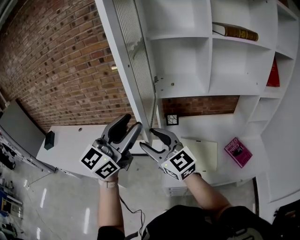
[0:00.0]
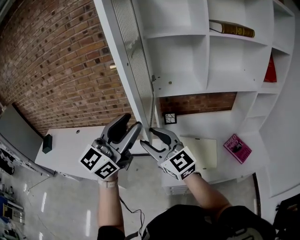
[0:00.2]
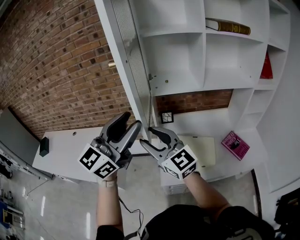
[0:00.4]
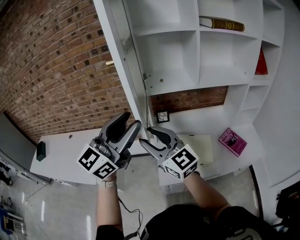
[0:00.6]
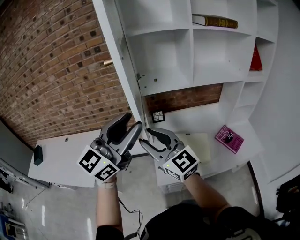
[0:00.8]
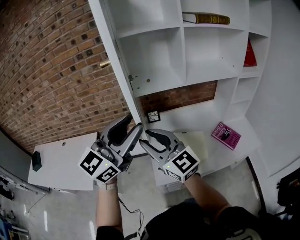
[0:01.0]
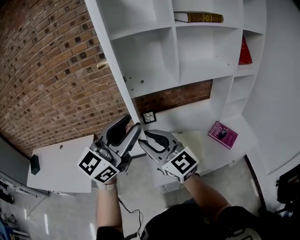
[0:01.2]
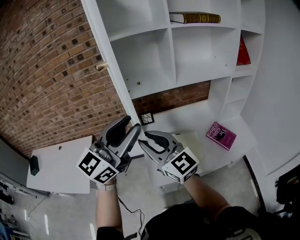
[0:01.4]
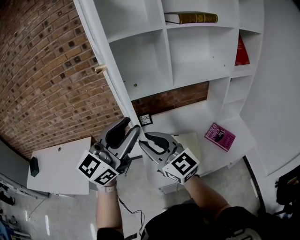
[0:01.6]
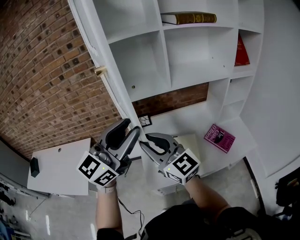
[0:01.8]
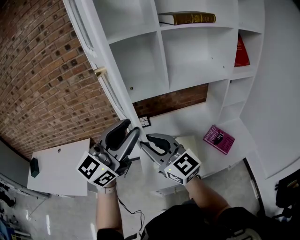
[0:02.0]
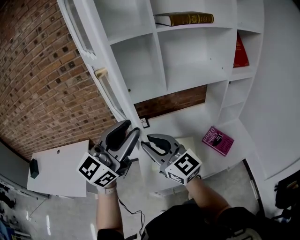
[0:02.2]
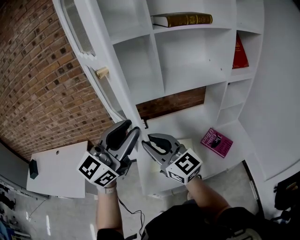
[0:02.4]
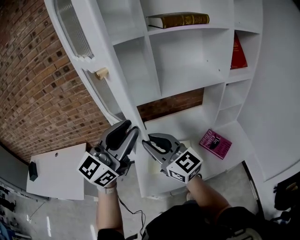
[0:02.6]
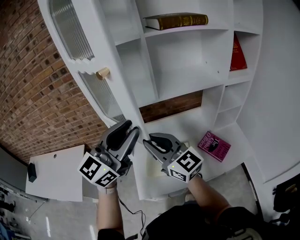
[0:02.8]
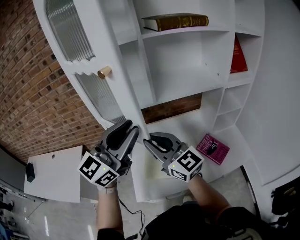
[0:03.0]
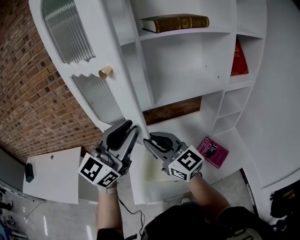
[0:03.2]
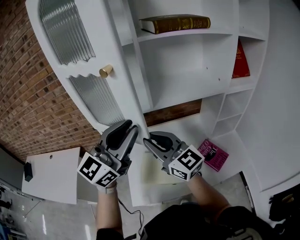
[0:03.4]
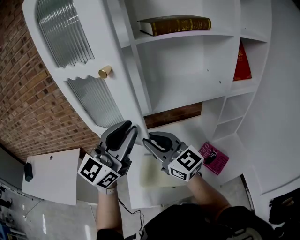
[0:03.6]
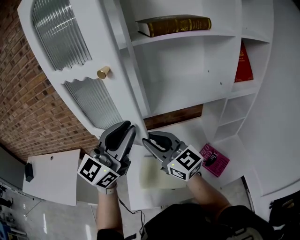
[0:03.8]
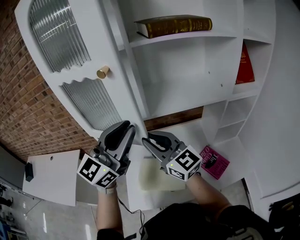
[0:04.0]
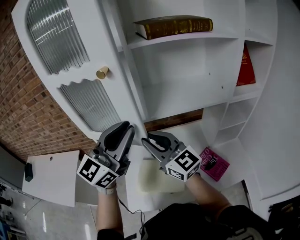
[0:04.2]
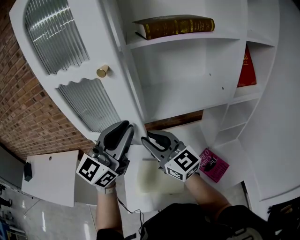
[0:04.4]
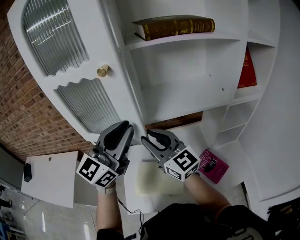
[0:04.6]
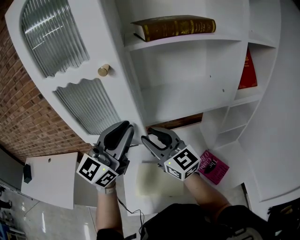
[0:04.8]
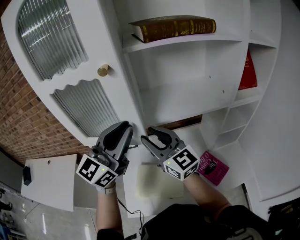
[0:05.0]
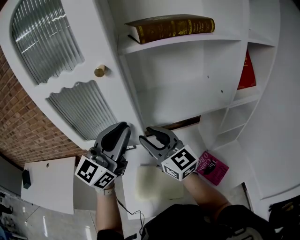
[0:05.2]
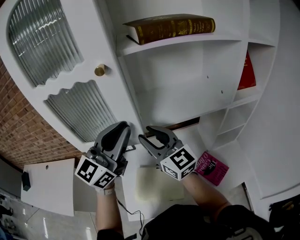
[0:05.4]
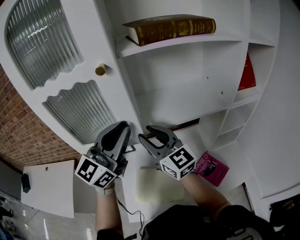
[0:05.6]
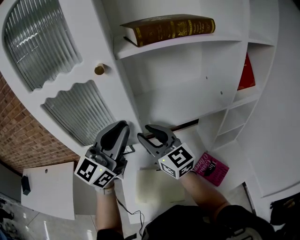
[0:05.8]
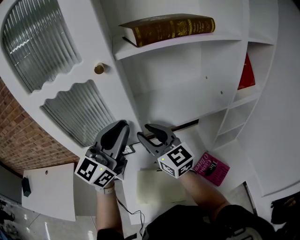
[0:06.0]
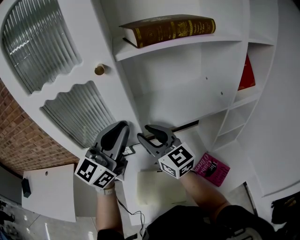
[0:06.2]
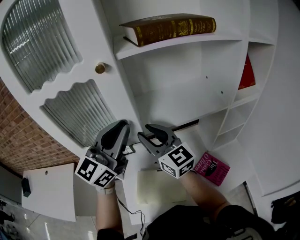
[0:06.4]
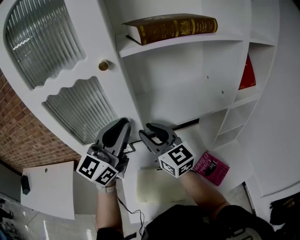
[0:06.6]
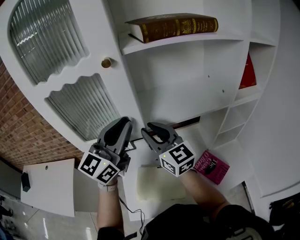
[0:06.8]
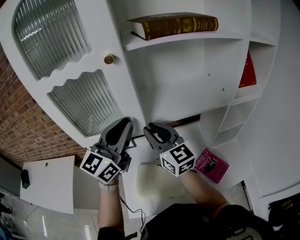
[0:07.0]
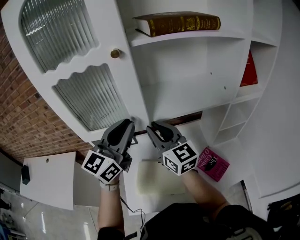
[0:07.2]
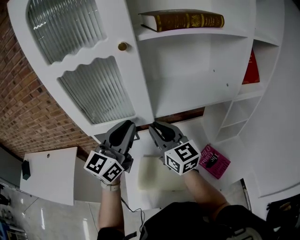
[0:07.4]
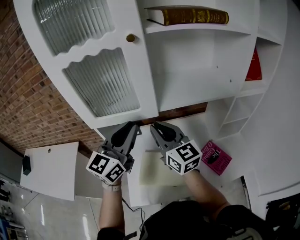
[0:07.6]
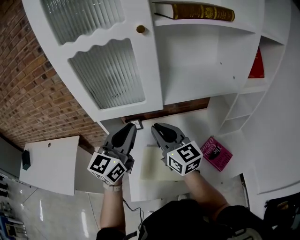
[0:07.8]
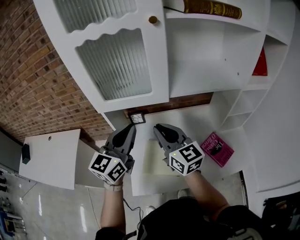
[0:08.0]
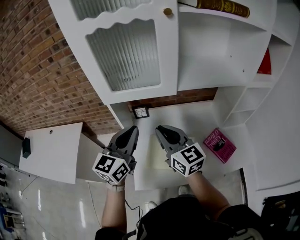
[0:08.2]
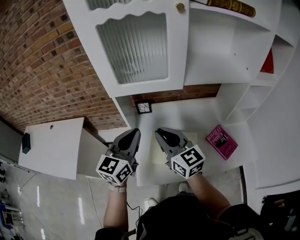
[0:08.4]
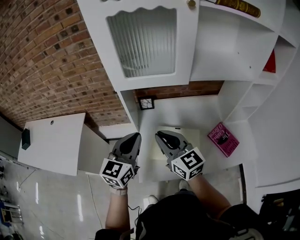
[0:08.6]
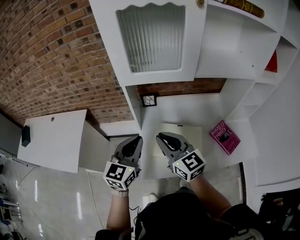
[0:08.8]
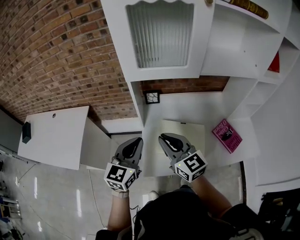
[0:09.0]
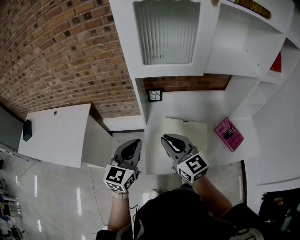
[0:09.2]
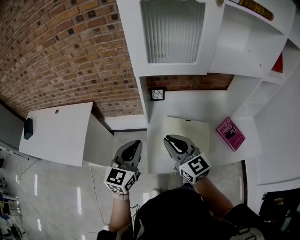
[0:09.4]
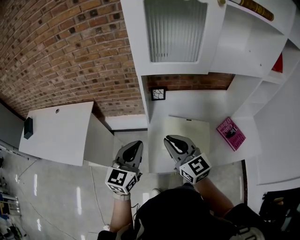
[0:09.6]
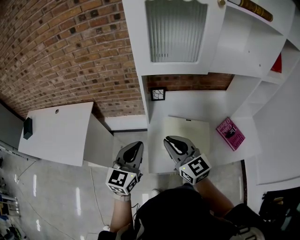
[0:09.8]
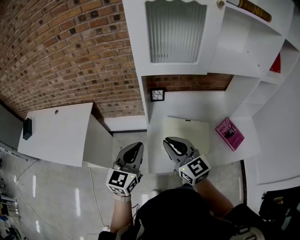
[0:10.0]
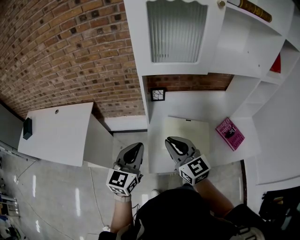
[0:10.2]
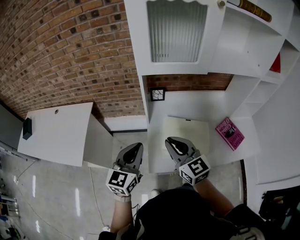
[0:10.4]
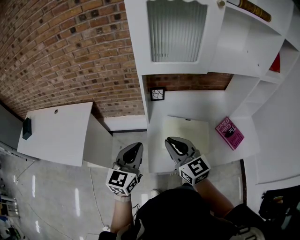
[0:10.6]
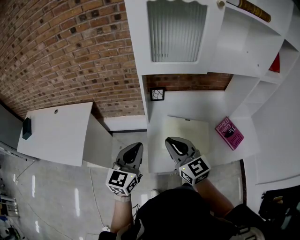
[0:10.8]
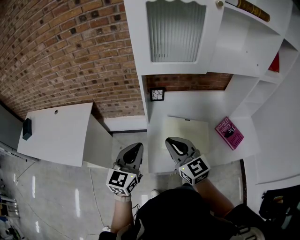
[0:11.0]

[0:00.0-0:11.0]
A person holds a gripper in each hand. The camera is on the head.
0:00.0 to 0:01.6: Both grippers travel together to the right, roughly 10 cm. The right gripper closes its fingers.
0:01.6 to 0:03.2: Both grippers move to the right and forward, some 15 cm.
0:03.2 to 0:04.8: Both grippers travel together forward, approximately 10 cm.
0:04.8 to 0:06.2: The grippers both shift forward by roughly 5 cm.
0:06.2 to 0:07.8: The left gripper shifts roughly 15 cm downward, backward and to the left. The right gripper moves backward and downward, approximately 10 cm, and closes up.
0:07.8 to 0:09.4: The right gripper shifts roughly 25 cm to the left, backward and downward; the left gripper shifts roughly 30 cm to the left, downward and backward.
0:09.4 to 0:11.0: The grippers make only small movements.

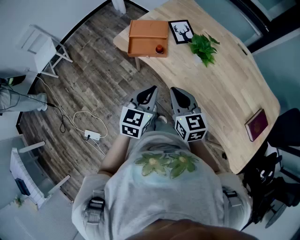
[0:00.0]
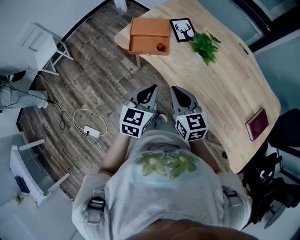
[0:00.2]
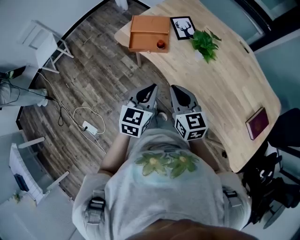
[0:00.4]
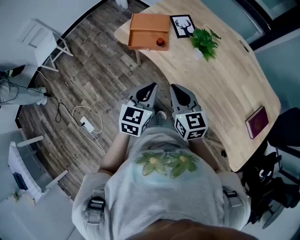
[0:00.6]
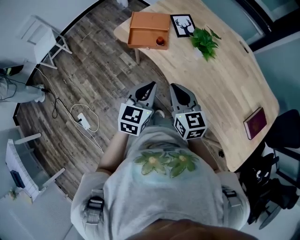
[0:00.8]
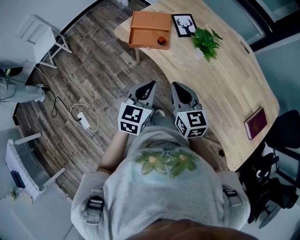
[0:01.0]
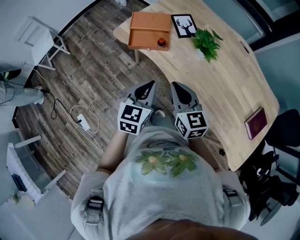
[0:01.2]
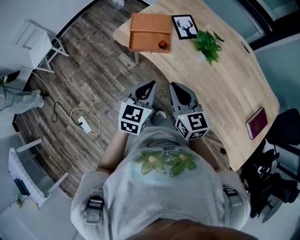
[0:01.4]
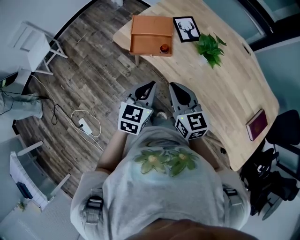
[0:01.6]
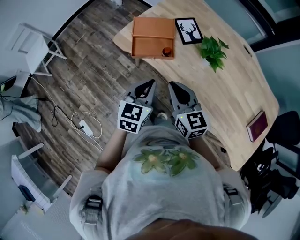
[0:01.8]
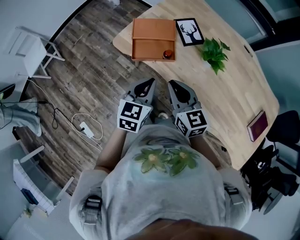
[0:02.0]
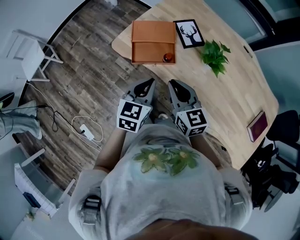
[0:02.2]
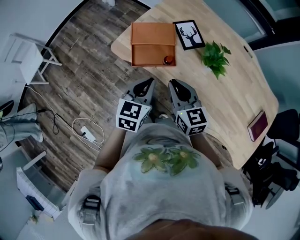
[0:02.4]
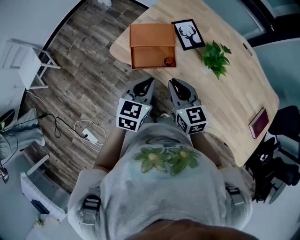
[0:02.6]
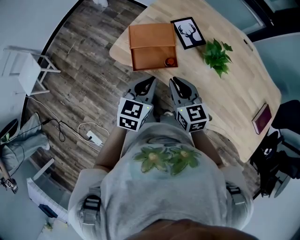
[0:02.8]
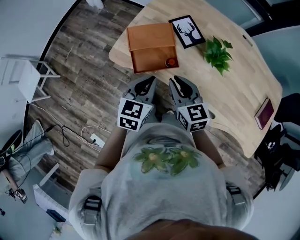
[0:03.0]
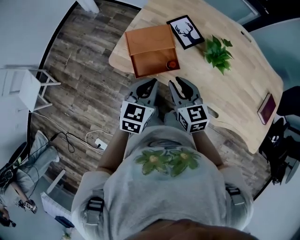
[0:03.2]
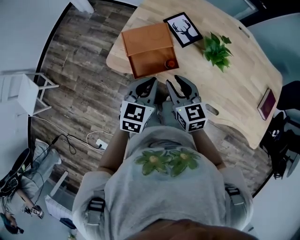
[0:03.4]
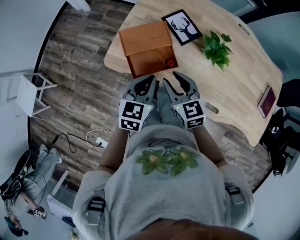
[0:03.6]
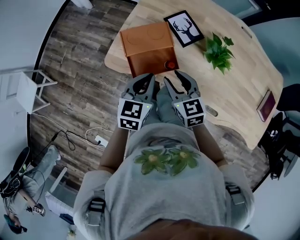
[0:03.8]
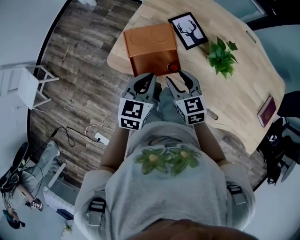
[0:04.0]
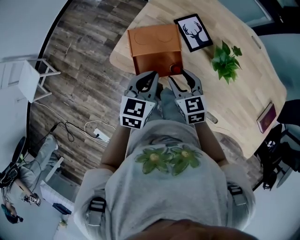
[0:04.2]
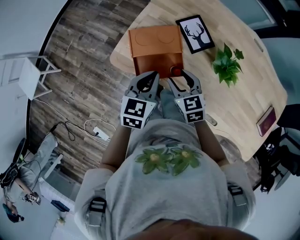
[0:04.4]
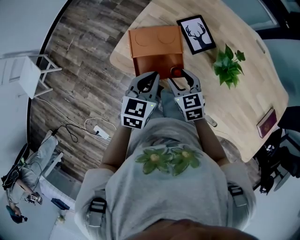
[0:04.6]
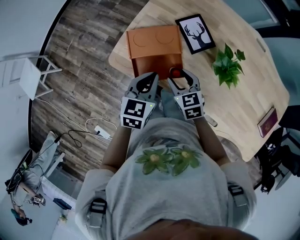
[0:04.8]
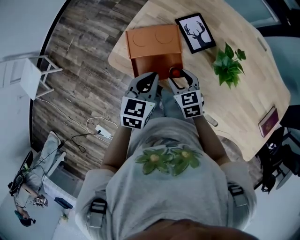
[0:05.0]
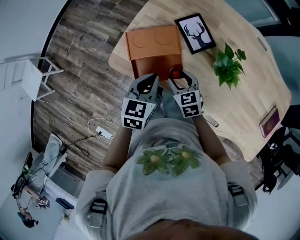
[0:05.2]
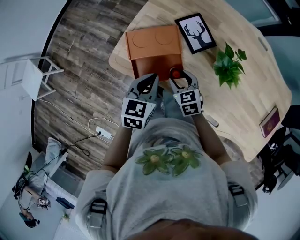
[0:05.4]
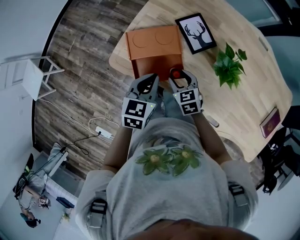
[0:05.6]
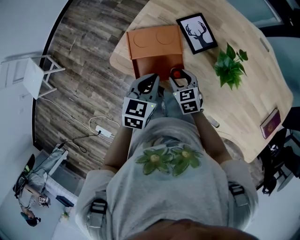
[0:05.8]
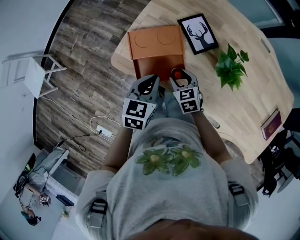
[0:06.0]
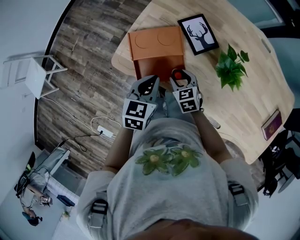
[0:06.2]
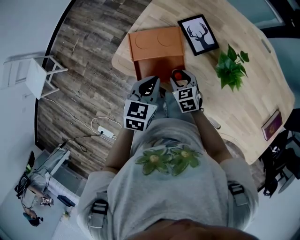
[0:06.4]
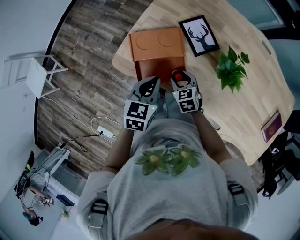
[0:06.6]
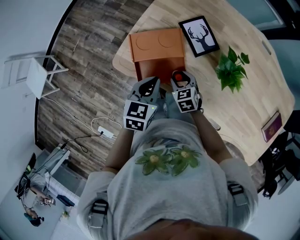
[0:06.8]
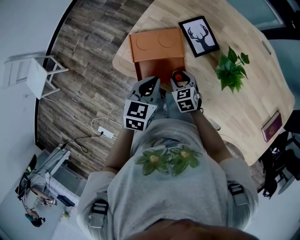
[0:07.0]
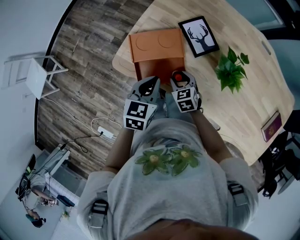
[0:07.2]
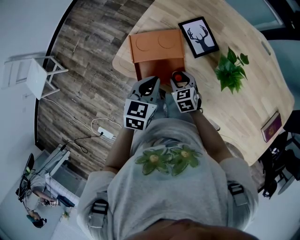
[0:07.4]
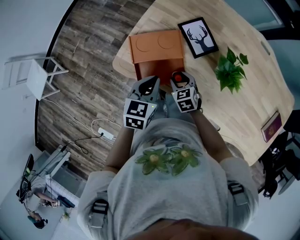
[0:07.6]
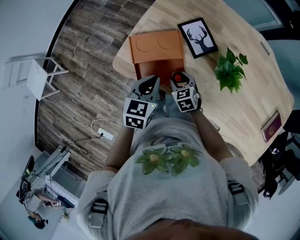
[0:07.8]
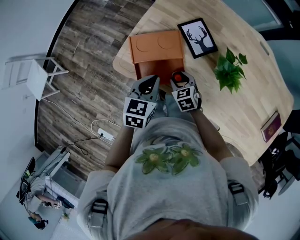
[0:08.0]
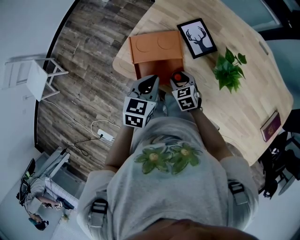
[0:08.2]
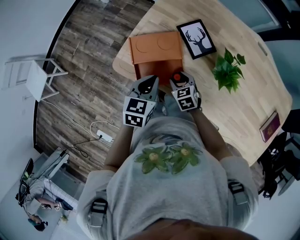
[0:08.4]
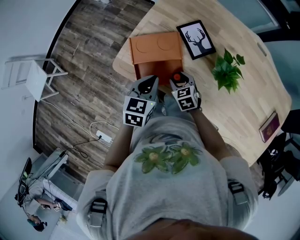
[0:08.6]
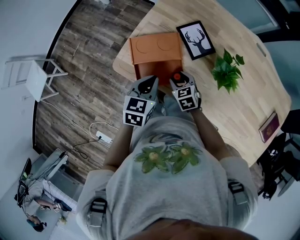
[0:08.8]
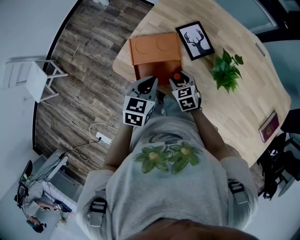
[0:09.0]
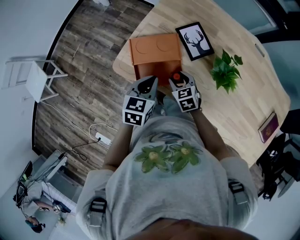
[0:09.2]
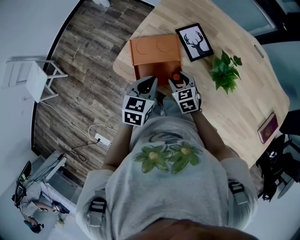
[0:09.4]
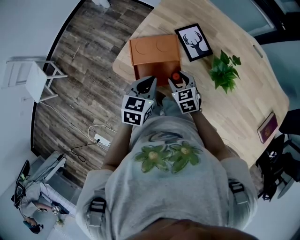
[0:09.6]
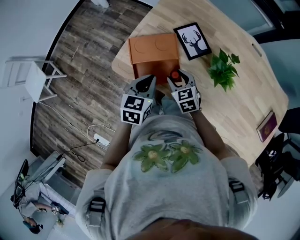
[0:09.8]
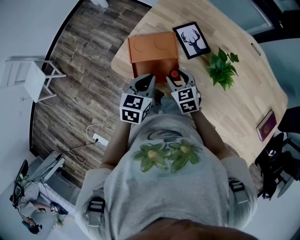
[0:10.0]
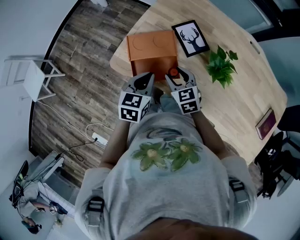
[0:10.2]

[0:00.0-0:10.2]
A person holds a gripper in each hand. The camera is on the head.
0:00.0 to 0:01.4: The grippers make only small movements.
0:01.4 to 0:03.0: Both grippers travel together forward and to the left, some 20 cm.
0:03.0 to 0:04.4: The right gripper heads forward and downward, covering about 10 cm, and opens, while the left gripper goes some 10 cm forward.
0:04.4 to 0:05.8: The right gripper moves downward, approximately 10 cm.
0:05.8 to 0:08.8: There are only small adjustments of the grippers.
0:08.8 to 0:10.2: The right gripper is displaced upward by roughly 10 cm.

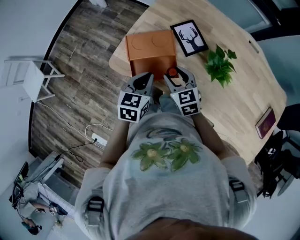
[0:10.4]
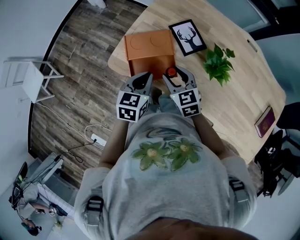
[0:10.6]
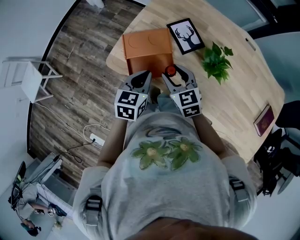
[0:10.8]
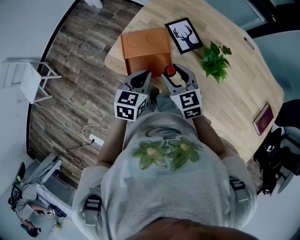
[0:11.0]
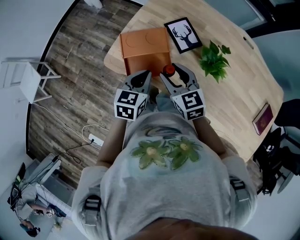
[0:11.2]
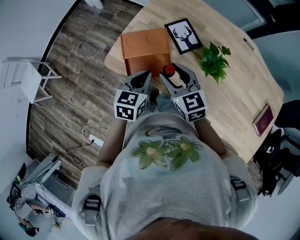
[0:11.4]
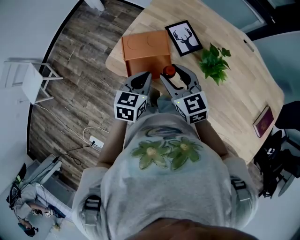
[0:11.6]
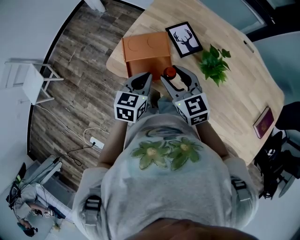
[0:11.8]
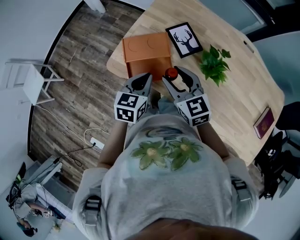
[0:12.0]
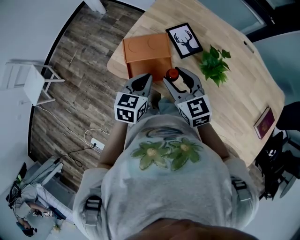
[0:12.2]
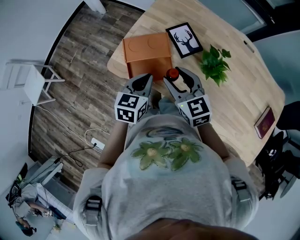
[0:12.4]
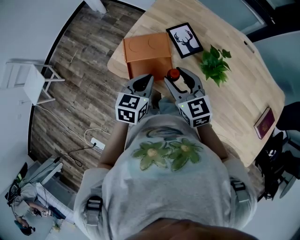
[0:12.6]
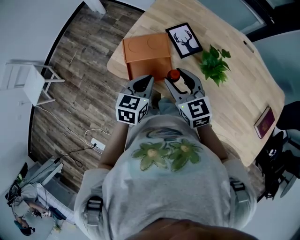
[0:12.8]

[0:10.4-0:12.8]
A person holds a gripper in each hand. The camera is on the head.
0:10.4 to 0:11.6: The right gripper is displaced upward by some 10 cm.
0:11.6 to 0:12.8: The grippers move only a little.
